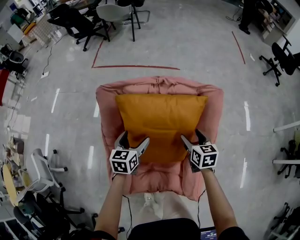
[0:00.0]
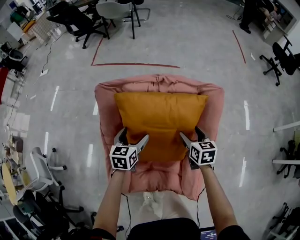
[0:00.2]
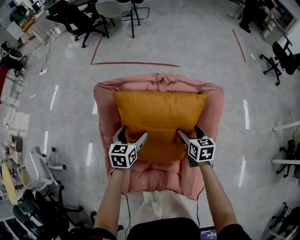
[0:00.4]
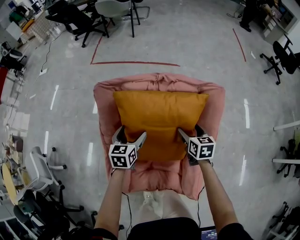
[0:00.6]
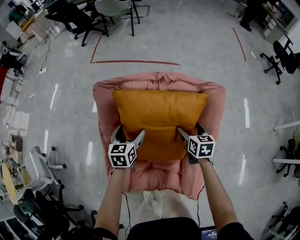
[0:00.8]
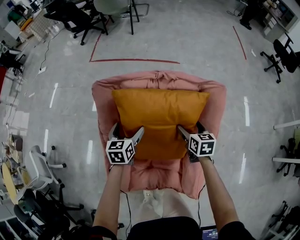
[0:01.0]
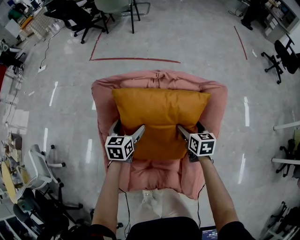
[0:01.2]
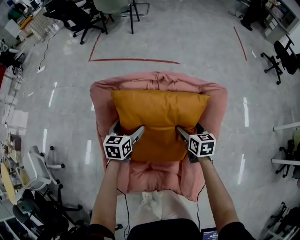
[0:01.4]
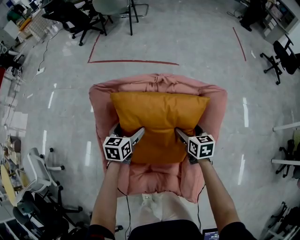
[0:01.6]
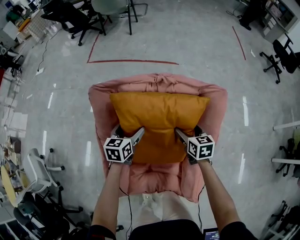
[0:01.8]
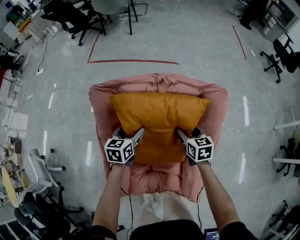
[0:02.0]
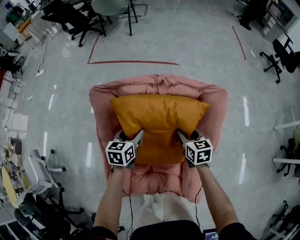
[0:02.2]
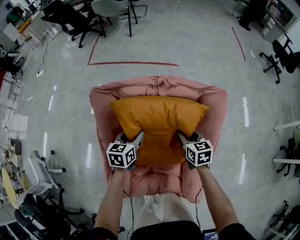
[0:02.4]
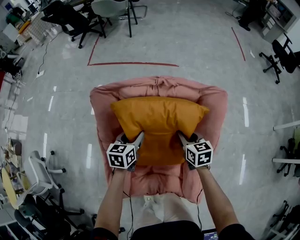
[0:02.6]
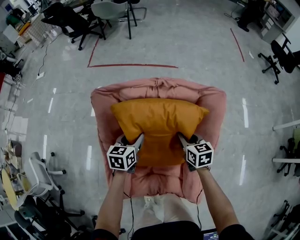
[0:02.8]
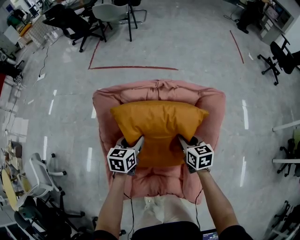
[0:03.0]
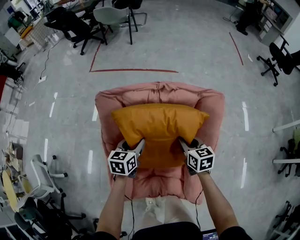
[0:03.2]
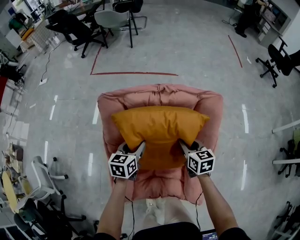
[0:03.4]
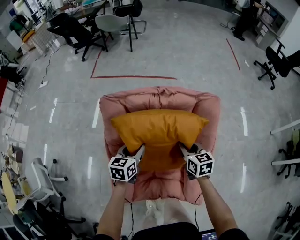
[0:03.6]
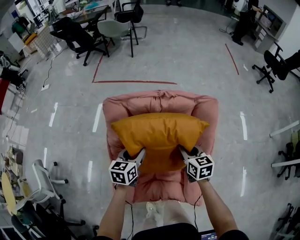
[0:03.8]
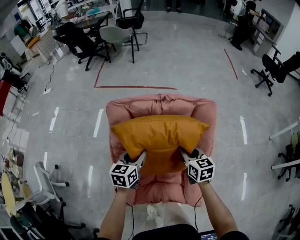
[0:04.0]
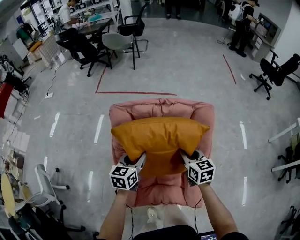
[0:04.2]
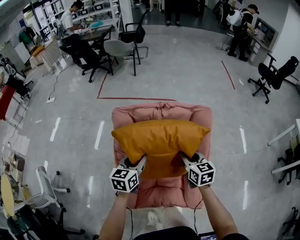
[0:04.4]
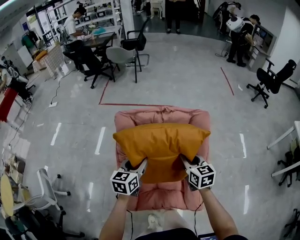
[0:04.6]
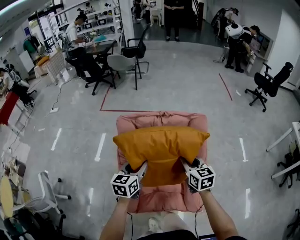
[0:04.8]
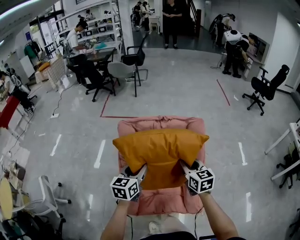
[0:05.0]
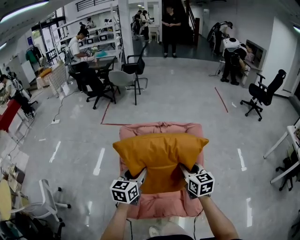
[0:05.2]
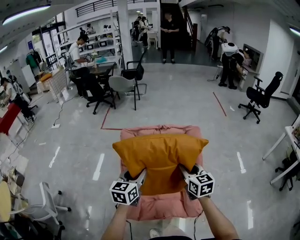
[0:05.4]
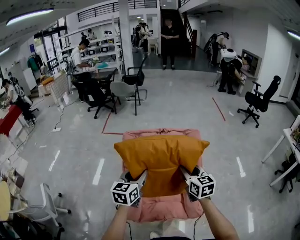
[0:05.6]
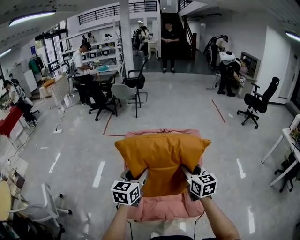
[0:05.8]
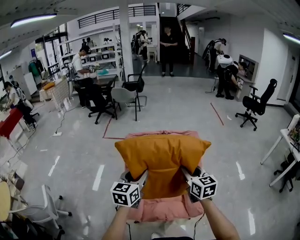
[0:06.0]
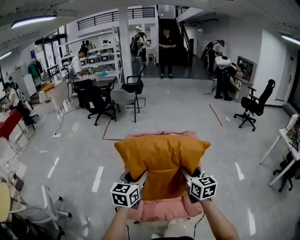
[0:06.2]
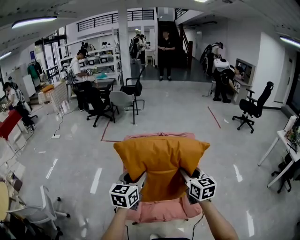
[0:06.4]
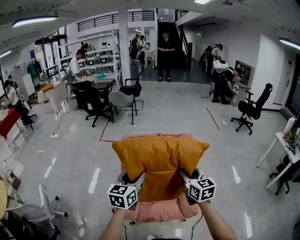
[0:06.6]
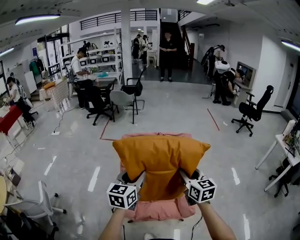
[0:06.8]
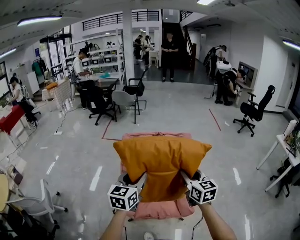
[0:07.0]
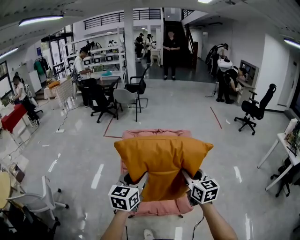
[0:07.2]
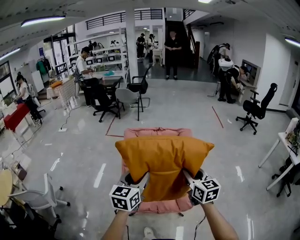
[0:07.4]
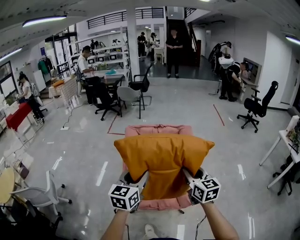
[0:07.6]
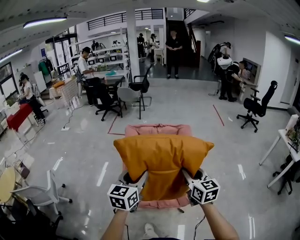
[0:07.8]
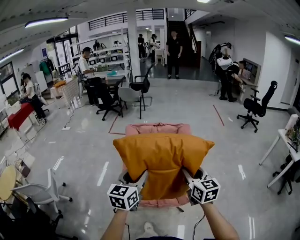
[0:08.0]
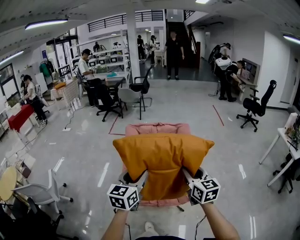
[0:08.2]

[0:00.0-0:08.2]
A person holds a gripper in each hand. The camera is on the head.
0:00.0 to 0:01.6: The grippers both shift forward by some 5 cm.
0:01.6 to 0:03.2: The left gripper changes place by approximately 5 cm, and closes up; the right gripper moves approximately 5 cm, and closes up.
0:03.2 to 0:05.0: The two grippers go roughly 25 cm upward and backward.
0:05.0 to 0:06.6: The grippers both shift backward and upward by approximately 20 cm.
0:06.6 to 0:08.2: The grippers both shift backward and to the right by approximately 20 cm.

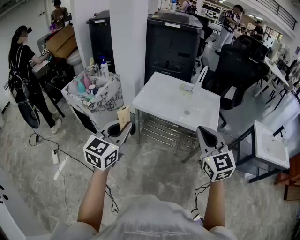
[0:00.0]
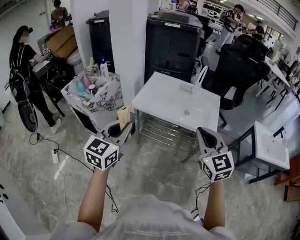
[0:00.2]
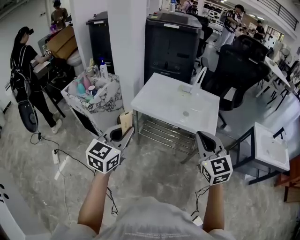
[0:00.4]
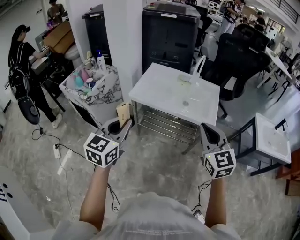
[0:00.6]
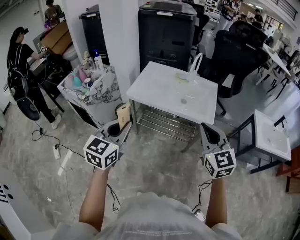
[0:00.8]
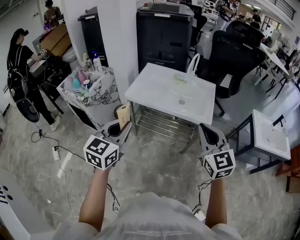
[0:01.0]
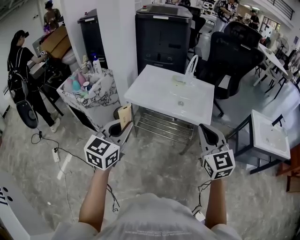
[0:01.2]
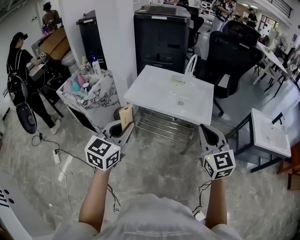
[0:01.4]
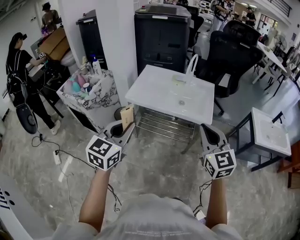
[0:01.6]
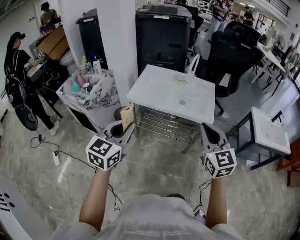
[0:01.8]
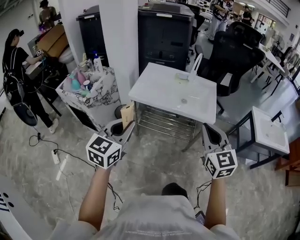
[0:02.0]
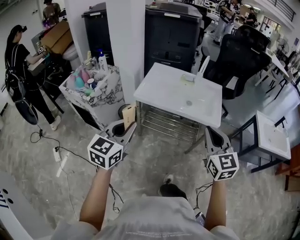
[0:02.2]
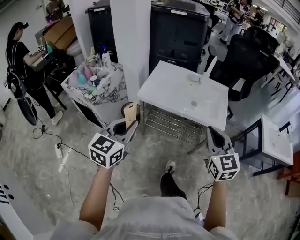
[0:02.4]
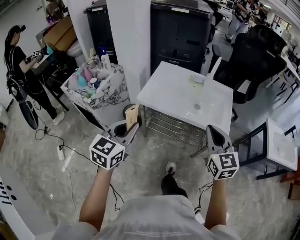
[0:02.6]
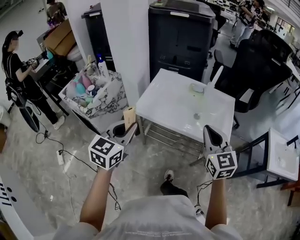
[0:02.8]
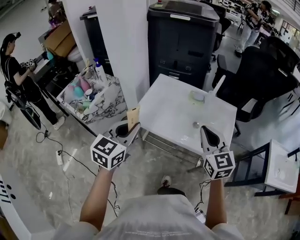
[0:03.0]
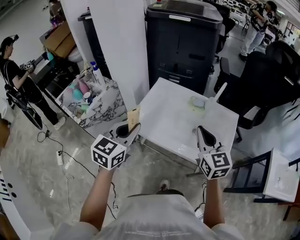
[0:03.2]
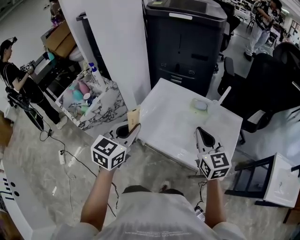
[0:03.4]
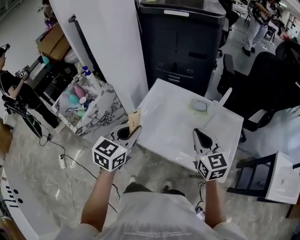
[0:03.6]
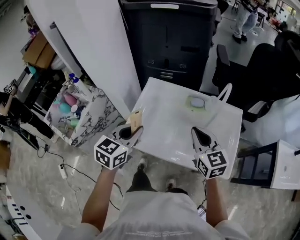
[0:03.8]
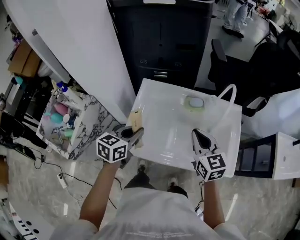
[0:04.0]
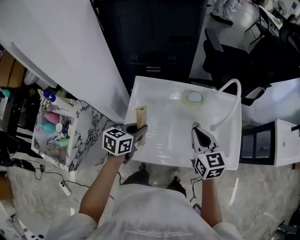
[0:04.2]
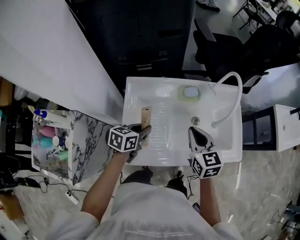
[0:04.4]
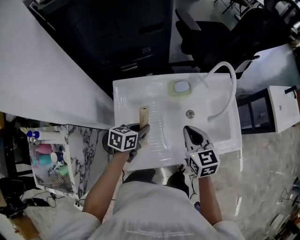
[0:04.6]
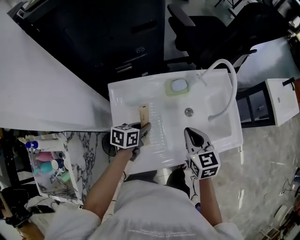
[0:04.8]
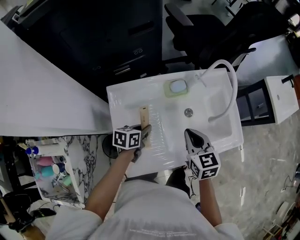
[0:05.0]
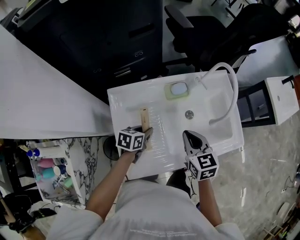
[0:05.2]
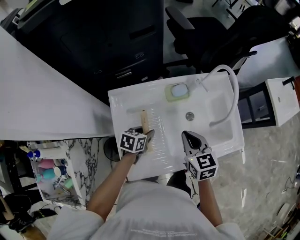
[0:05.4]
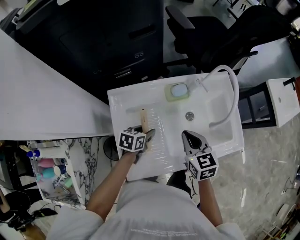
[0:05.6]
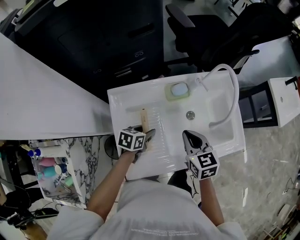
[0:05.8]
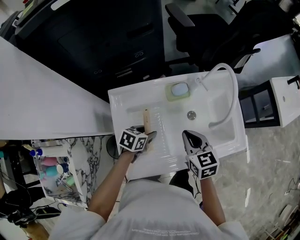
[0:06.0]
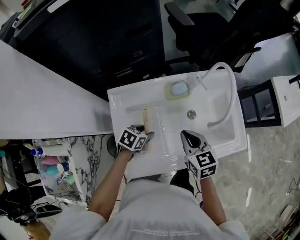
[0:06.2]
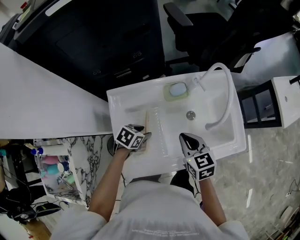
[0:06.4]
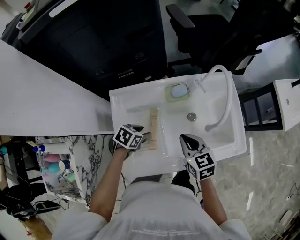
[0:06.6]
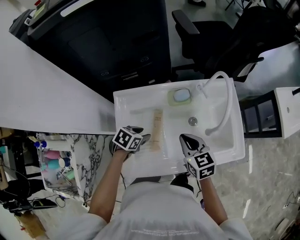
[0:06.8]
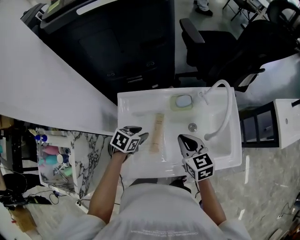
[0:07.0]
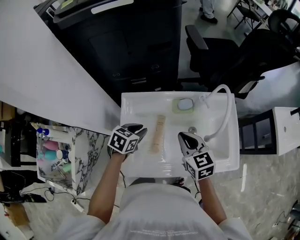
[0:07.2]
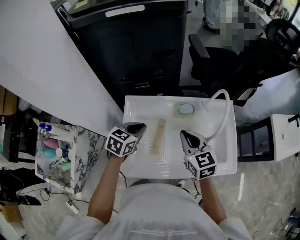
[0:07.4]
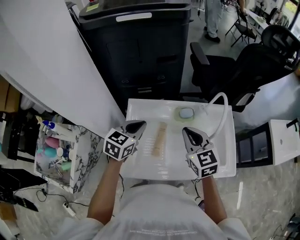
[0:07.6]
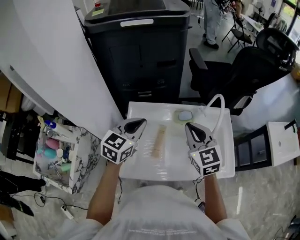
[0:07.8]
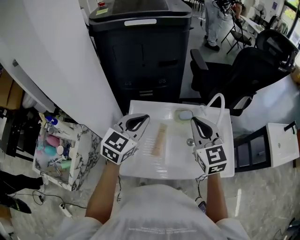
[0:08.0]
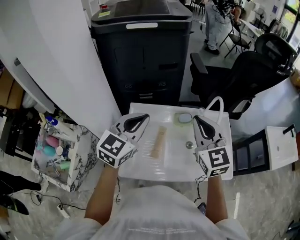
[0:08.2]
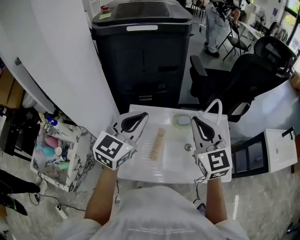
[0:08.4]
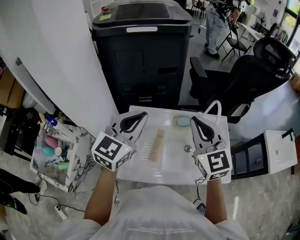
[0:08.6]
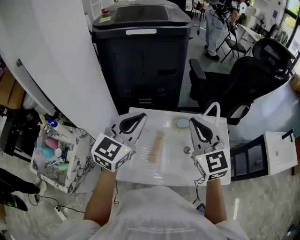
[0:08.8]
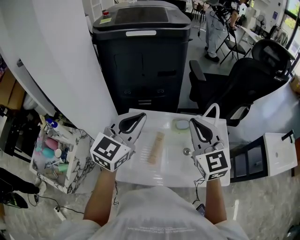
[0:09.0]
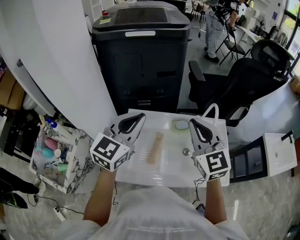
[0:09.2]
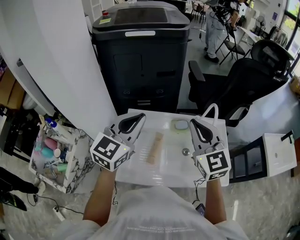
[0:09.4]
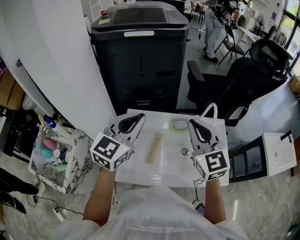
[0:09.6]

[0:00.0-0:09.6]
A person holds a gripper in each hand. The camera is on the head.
0:00.0 to 0:01.6: Both grippers travel together to the right, some 5 cm.
0:01.6 to 0:03.2: Both grippers move forward, about 35 cm.
0:03.2 to 0:04.8: The right gripper heads downward, covering some 20 cm, and swivels about 40 degrees. Meanwhile the left gripper heads downward, covering about 30 cm, and swivels approximately 60 degrees.
0:04.8 to 0:06.4: The left gripper changes its angle by approximately 30 degrees, and opens.
0:06.4 to 0:08.0: The grippers both shift upward by about 25 cm. The right gripper changes its angle by approximately 40 degrees. Meanwhile the left gripper angles its fingers upward, by roughly 40 degrees, and closes.
0:08.0 to 0:09.6: The grippers both shift upward by approximately 5 cm.

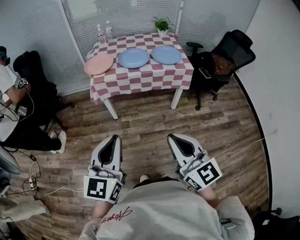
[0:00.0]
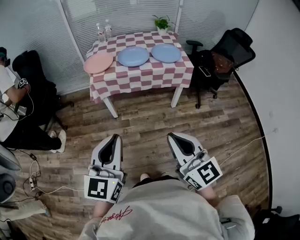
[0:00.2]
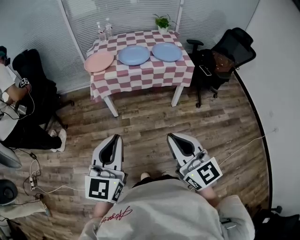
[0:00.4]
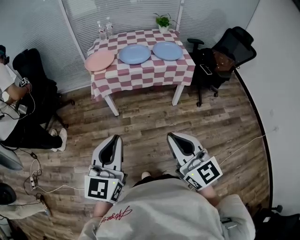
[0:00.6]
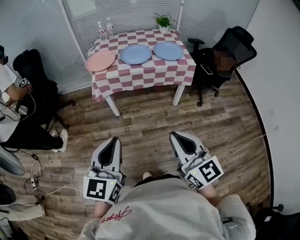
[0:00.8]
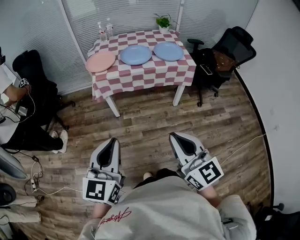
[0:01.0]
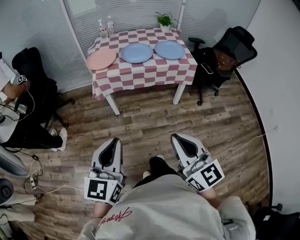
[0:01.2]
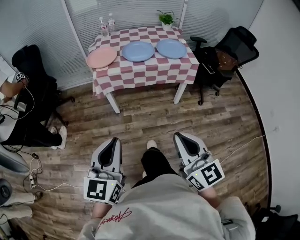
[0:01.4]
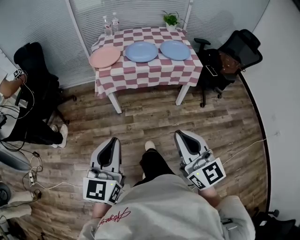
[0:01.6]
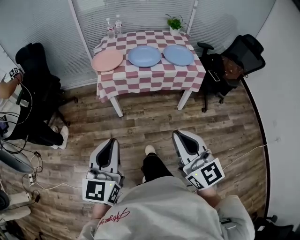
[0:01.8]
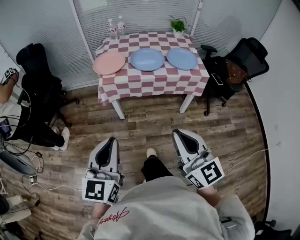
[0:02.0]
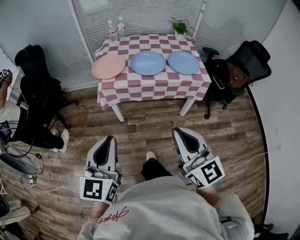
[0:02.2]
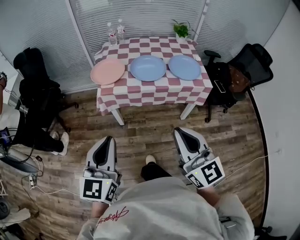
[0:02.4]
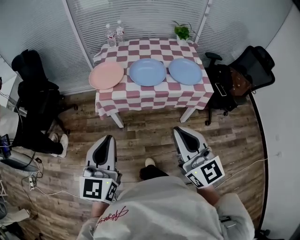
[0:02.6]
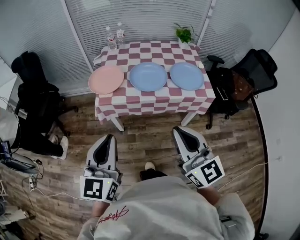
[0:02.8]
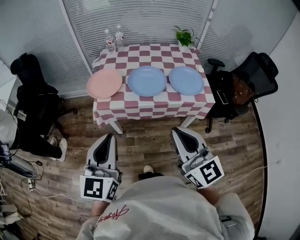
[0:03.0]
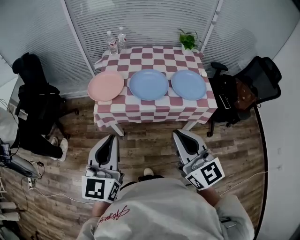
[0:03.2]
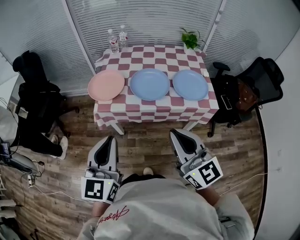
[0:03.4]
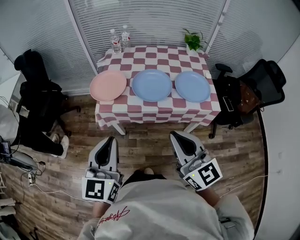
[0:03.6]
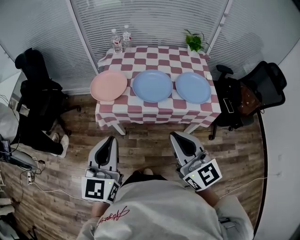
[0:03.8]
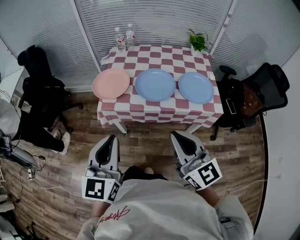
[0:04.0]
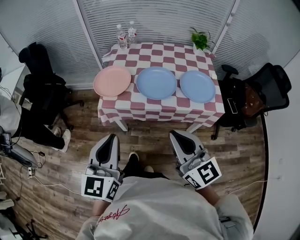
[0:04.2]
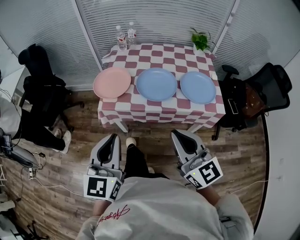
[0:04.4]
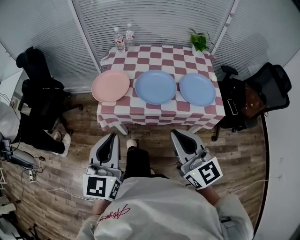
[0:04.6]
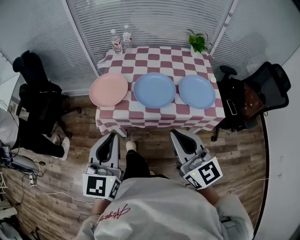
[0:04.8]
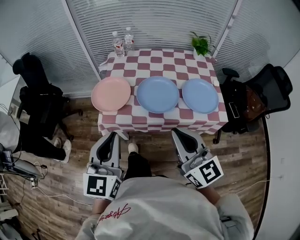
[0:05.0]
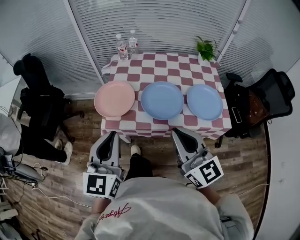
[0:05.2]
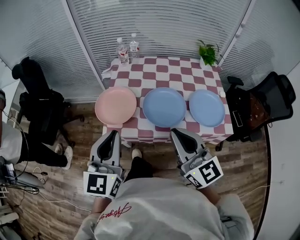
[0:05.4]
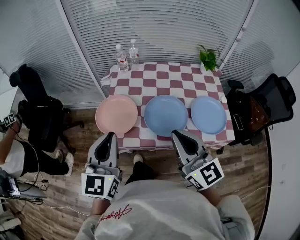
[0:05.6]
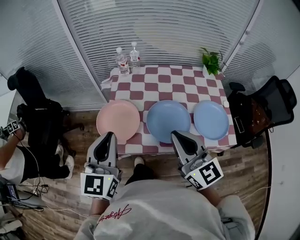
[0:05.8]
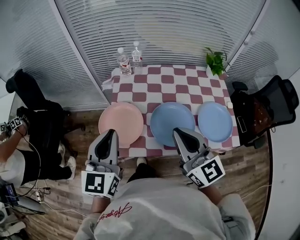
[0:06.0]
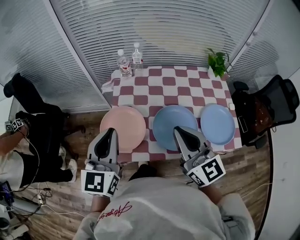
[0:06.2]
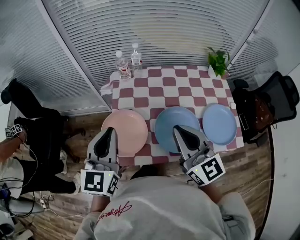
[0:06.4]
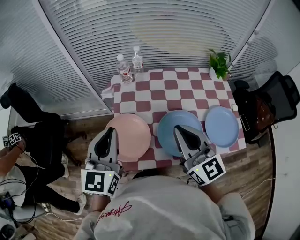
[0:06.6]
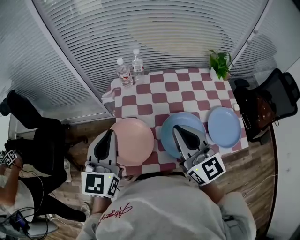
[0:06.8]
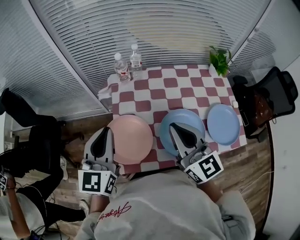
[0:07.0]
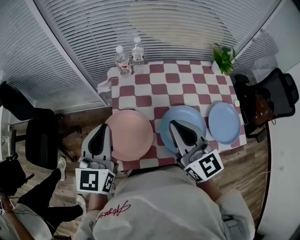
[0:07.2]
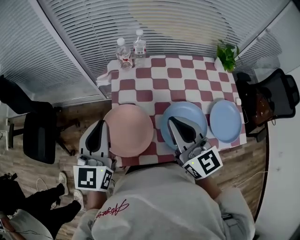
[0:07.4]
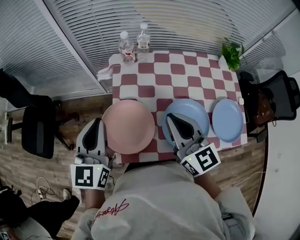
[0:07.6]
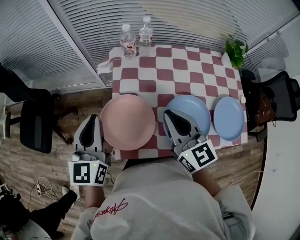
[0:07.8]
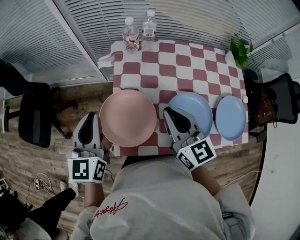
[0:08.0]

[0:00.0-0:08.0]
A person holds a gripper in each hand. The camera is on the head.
0:00.0 to 0:01.6: The left gripper changes place by some 5 cm.
0:01.6 to 0:03.2: The grippers both shift forward by roughly 30 cm.
0:03.2 to 0:04.8: Both grippers move forward, some 5 cm.
0:04.8 to 0:06.4: The two grippers go approximately 30 cm forward.
0:06.4 to 0:08.0: The right gripper goes approximately 15 cm downward, forward and to the left, while the left gripper moves to the left, downward and forward, approximately 15 cm.
